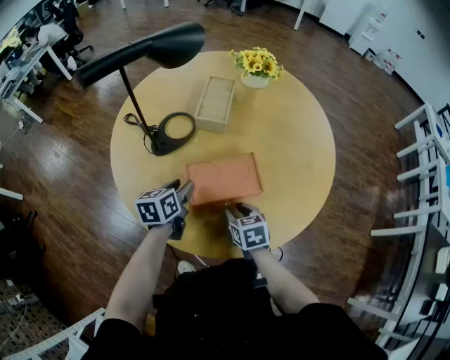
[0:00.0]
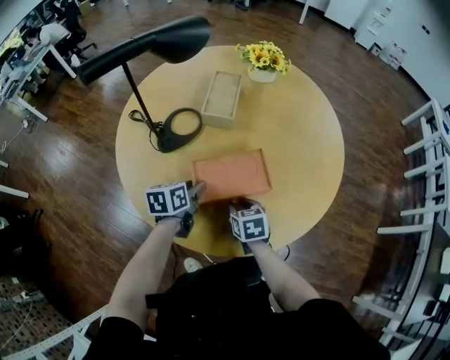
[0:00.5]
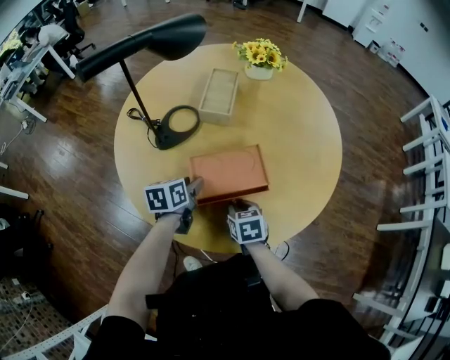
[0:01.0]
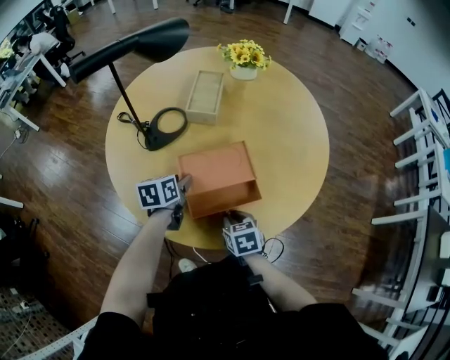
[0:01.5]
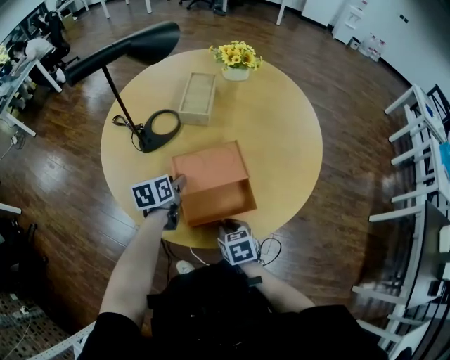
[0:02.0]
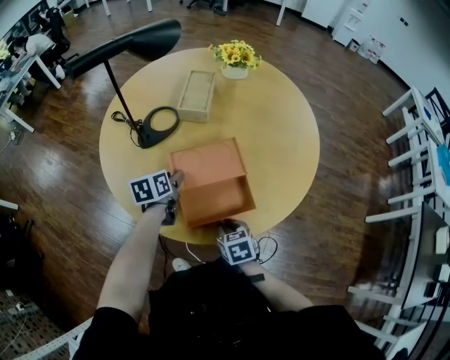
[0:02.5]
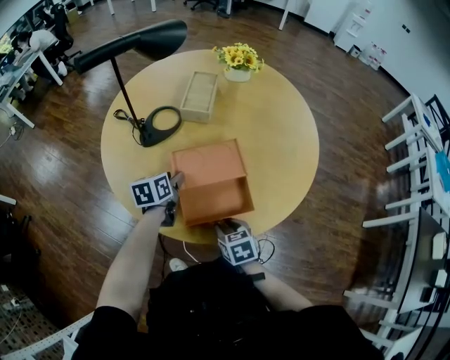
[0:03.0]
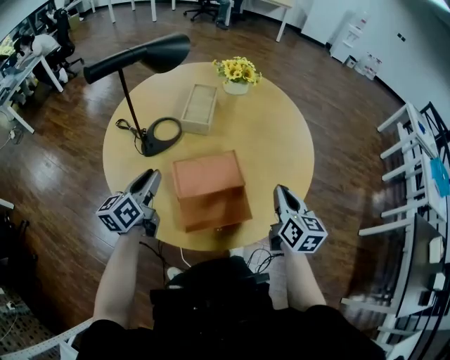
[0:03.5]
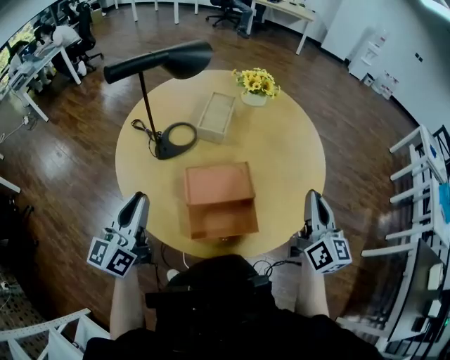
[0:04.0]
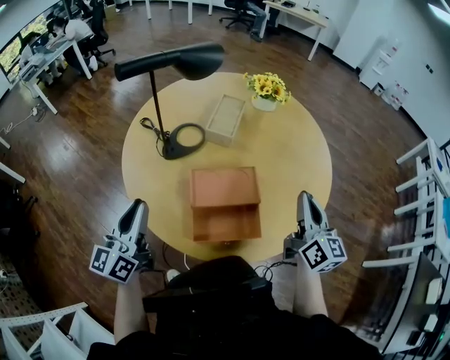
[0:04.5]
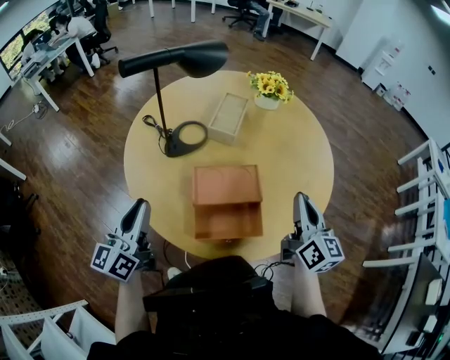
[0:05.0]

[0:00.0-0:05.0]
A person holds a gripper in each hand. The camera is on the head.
0:00.0 to 0:02.5: The right gripper is displaced backward by roughly 10 cm.
0:02.5 to 0:05.0: The right gripper goes some 35 cm upward, to the right and forward, and tips its fingers upward by approximately 50 degrees. Meanwhile the left gripper goes some 25 cm upward, backward and to the left, points its fingers some 40 degrees further upward, and closes its fingers.

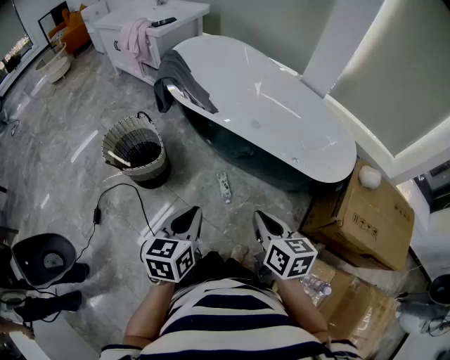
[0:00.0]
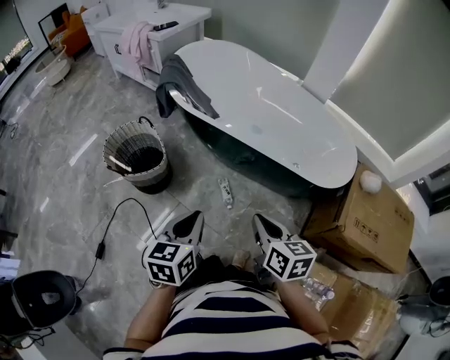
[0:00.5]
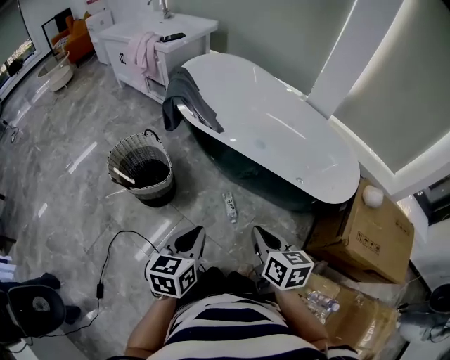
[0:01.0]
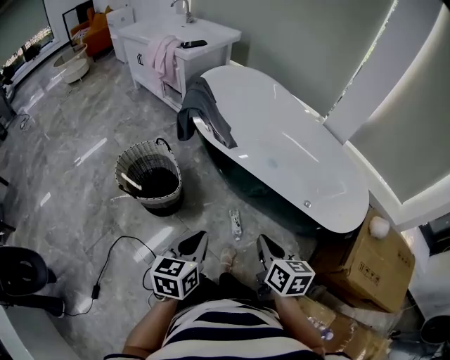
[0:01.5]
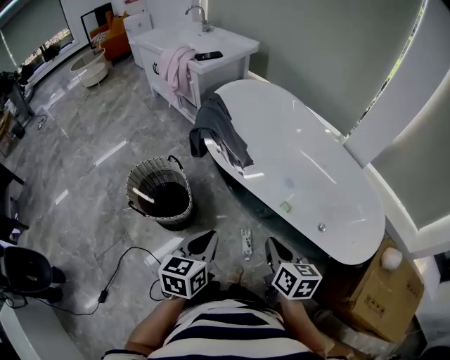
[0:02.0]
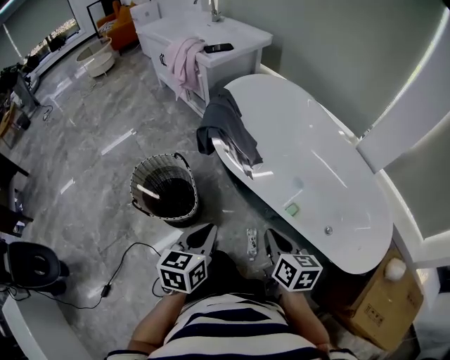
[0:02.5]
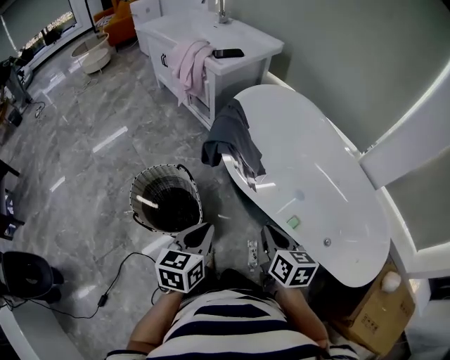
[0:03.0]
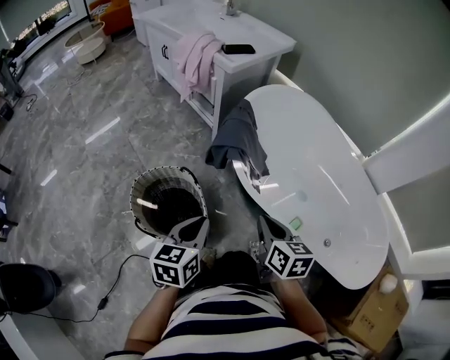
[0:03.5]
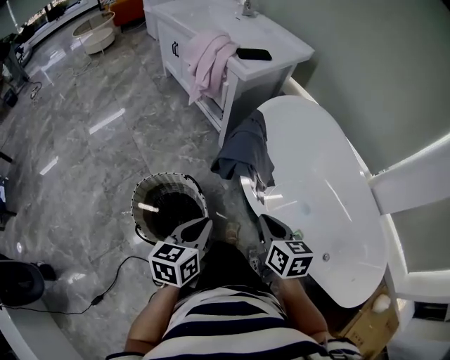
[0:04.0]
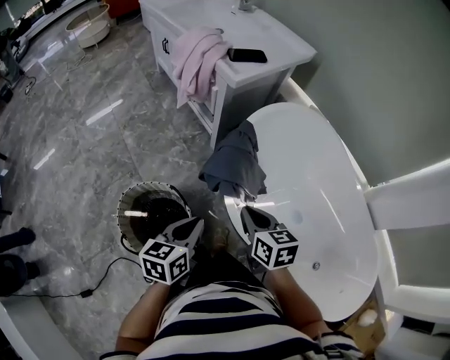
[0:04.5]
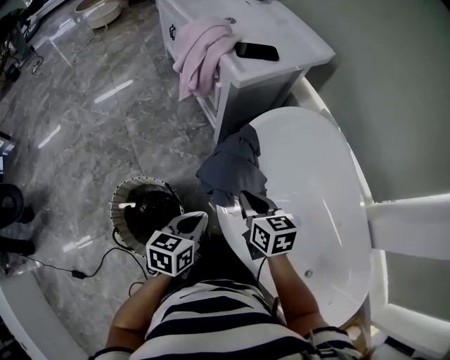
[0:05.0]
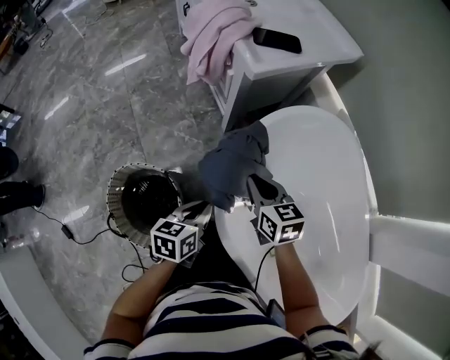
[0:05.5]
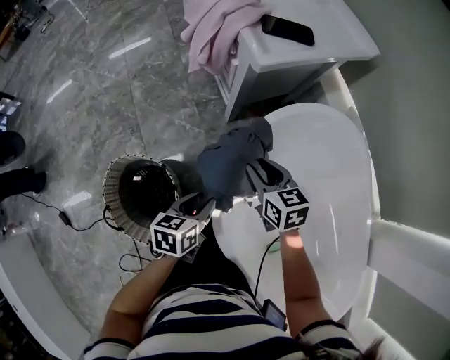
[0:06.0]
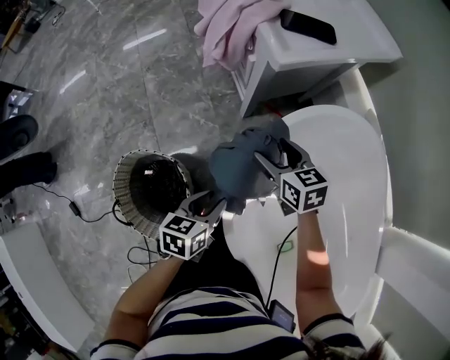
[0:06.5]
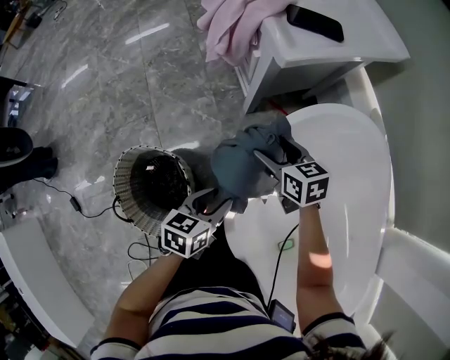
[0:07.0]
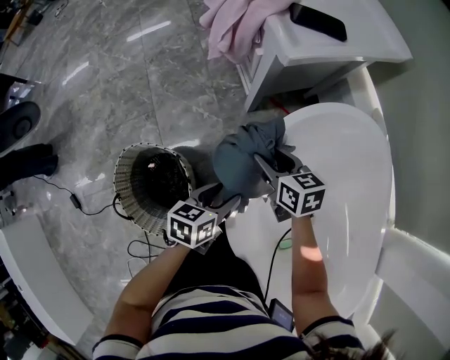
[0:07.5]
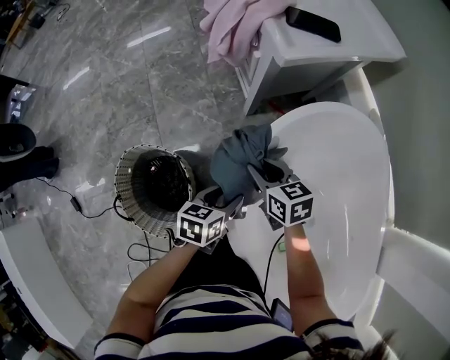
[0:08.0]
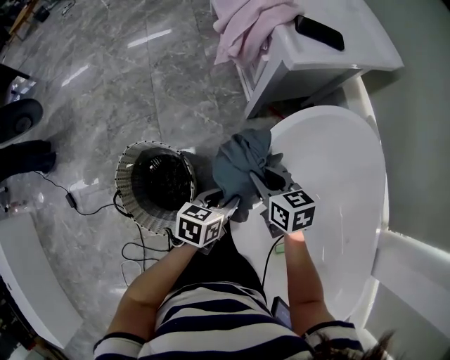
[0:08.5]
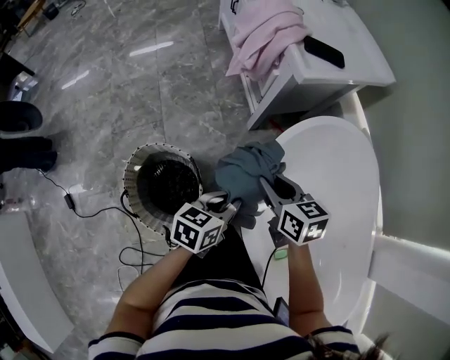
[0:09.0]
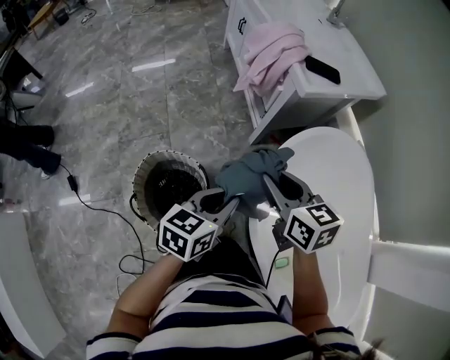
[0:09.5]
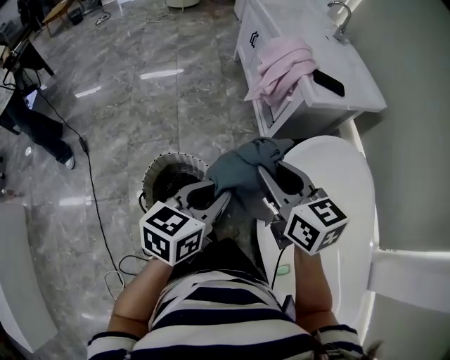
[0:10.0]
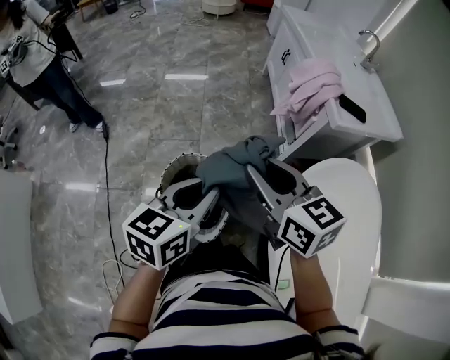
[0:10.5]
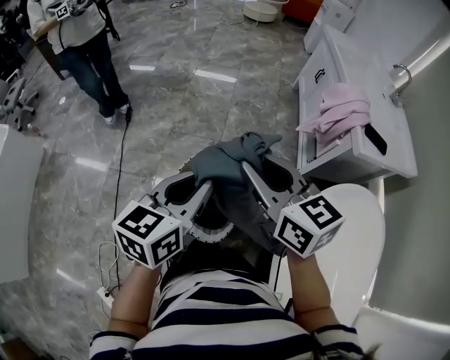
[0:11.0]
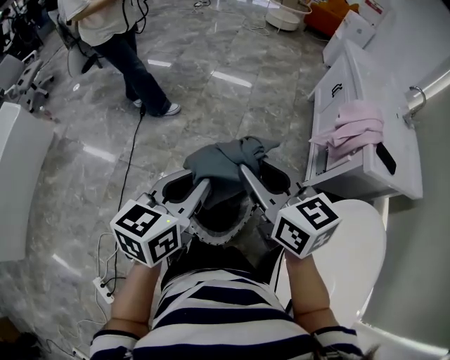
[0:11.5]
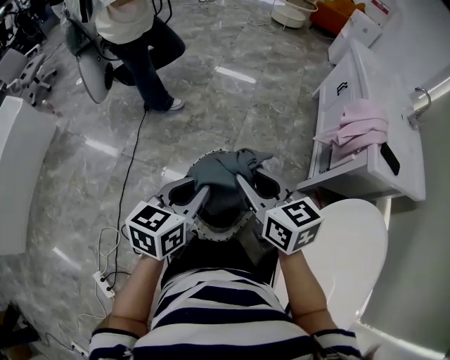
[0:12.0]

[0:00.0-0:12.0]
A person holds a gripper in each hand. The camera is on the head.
0:00.0 to 0:02.0: The grippers both shift forward by about 20 cm.
0:02.0 to 0:04.0: Both grippers move forward and to the left, some 35 cm.
0:04.0 to 0:06.0: The left gripper goes approximately 25 cm forward, downward and to the right, swivels about 20 degrees, and opens, while the right gripper moves forward, roughly 30 cm, and swivels approximately 30 degrees.
0:06.0 to 0:08.0: The left gripper opens its fingers; the right gripper moves approximately 5 cm, and opens and closes again.
0:08.0 to 0:10.0: The grippers both shift upward and to the left by roughly 30 cm. The right gripper swivels approximately 20 degrees. Meanwhile the left gripper turns by some 30 degrees, and closes its fingers.
0:10.0 to 0:12.0: The left gripper shifts by roughly 20 cm, and swivels roughly 30 degrees. Meanwhile the right gripper moves about 20 cm, and swivels approximately 30 degrees.

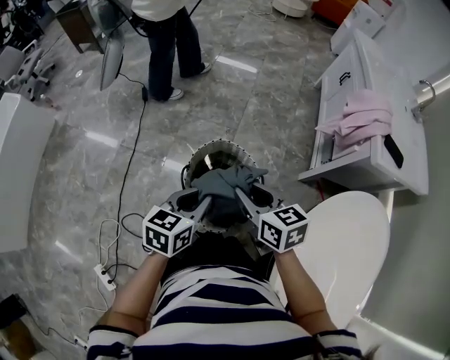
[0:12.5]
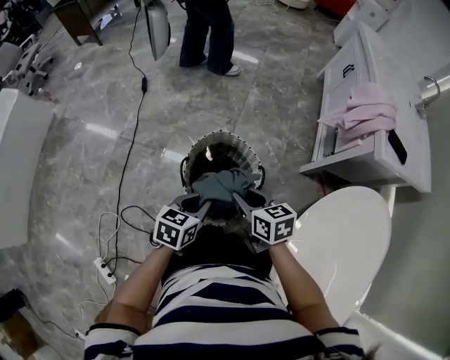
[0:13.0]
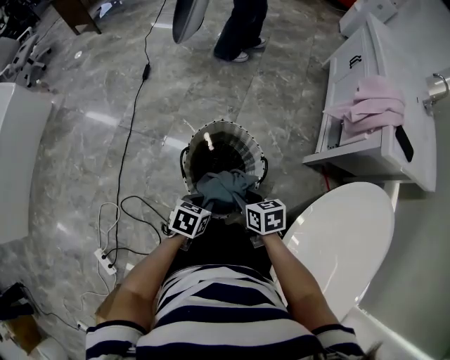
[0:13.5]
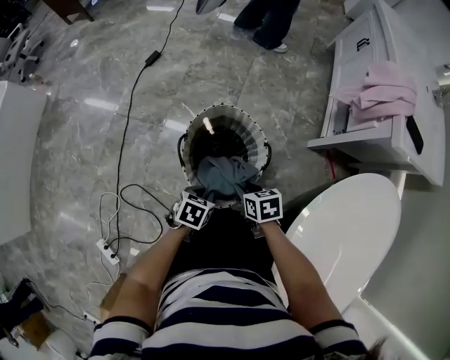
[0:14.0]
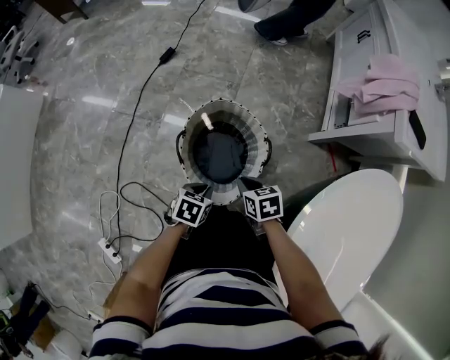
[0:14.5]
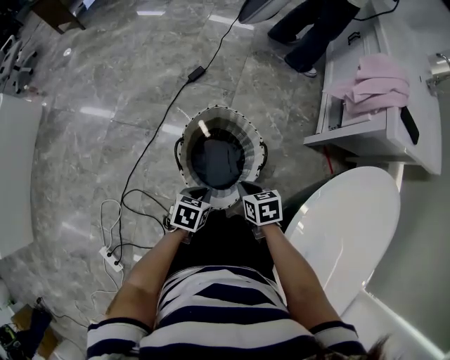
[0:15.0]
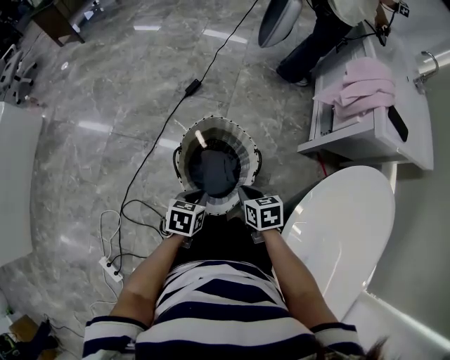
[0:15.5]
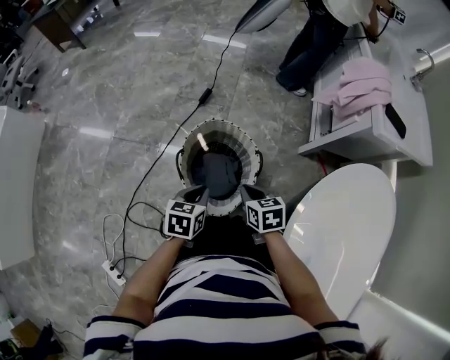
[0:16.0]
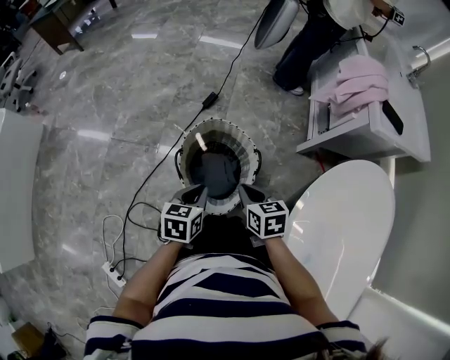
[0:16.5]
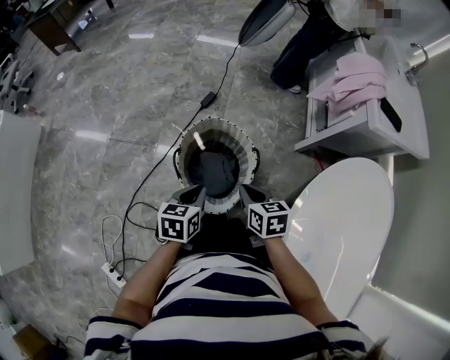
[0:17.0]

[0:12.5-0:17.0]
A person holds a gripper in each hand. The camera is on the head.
0:12.5 to 0:14.5: Both grippers move downward, about 25 cm. The left gripper rotates approximately 30 degrees, while the right gripper rotates some 30 degrees.
0:14.5 to 0:17.0: The two grippers go some 10 cm upward. The left gripper rotates some 20 degrees.

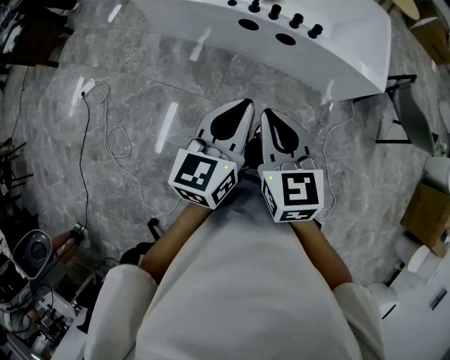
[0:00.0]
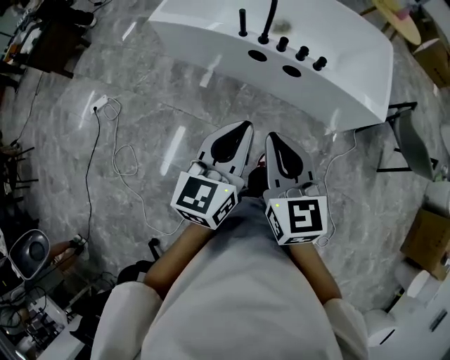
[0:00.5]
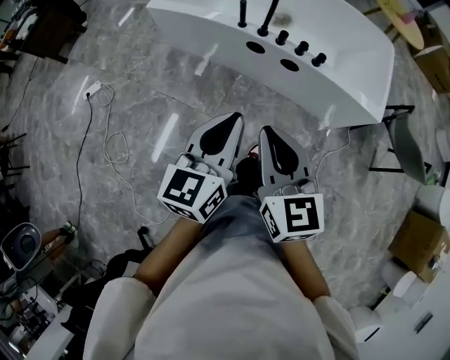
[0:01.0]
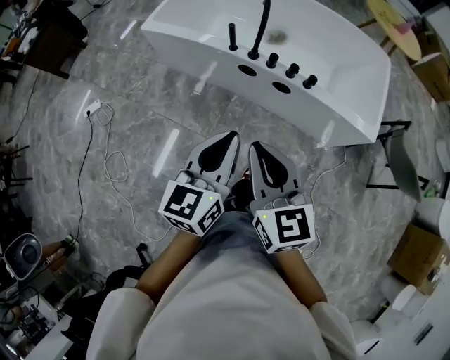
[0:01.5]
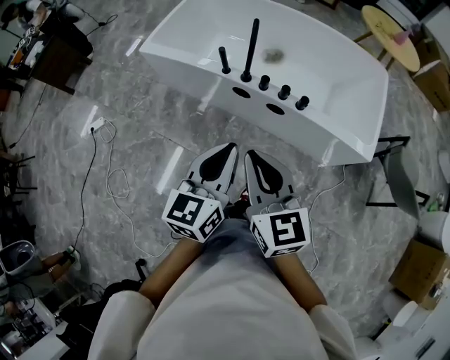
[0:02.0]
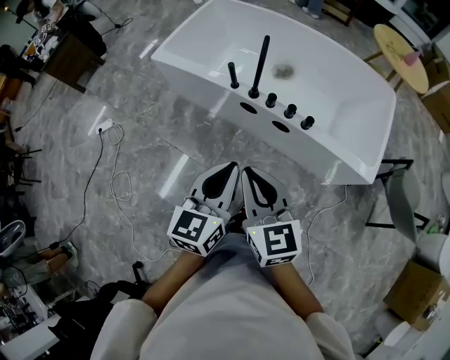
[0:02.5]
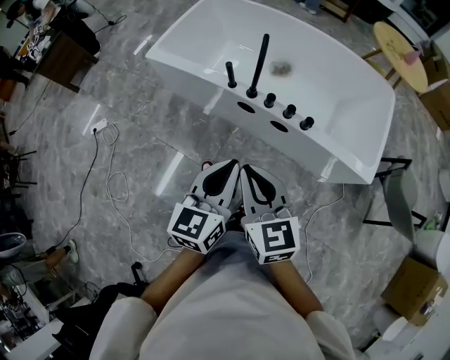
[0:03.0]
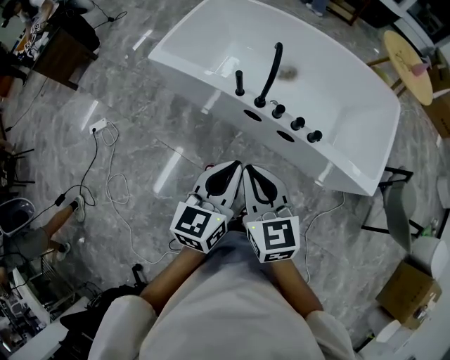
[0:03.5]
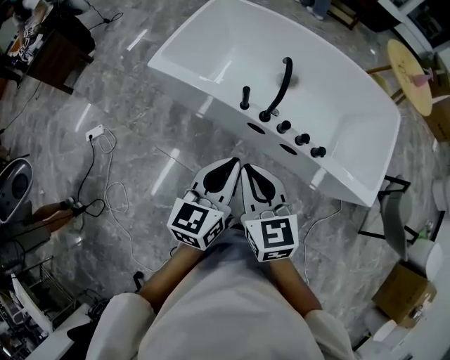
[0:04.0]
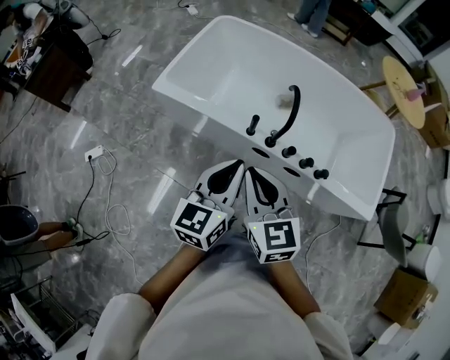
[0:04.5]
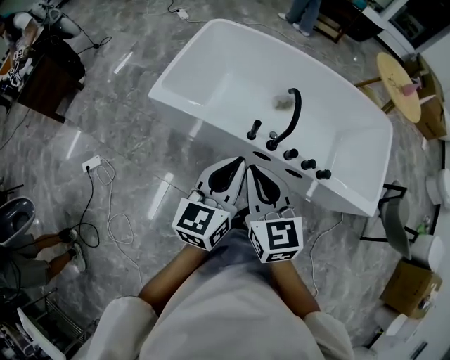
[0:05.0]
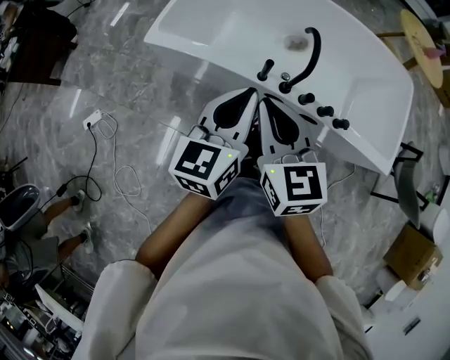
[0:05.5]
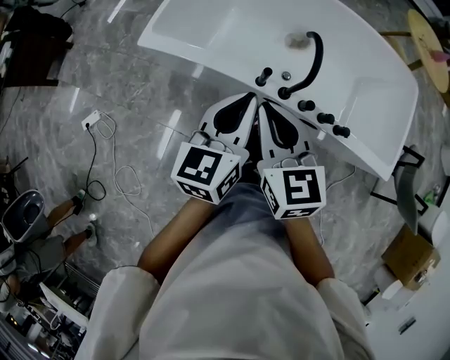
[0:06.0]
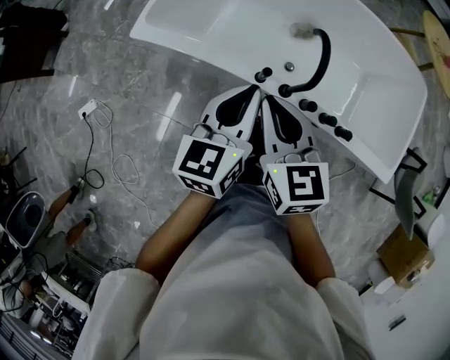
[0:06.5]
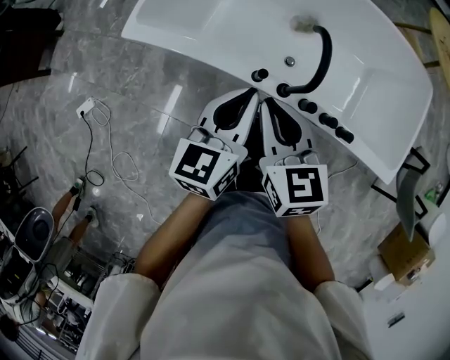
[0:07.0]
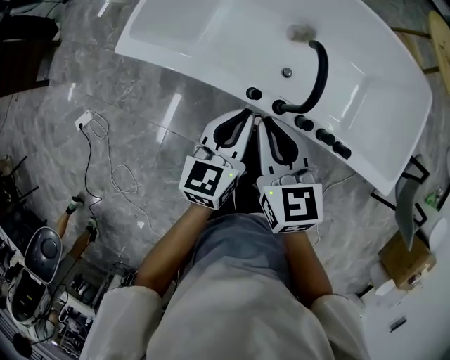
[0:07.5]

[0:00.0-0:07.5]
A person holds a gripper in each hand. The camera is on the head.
0:00.0 to 0:02.0: The grippers both shift forward and to the right by roughly 15 cm.
0:02.0 to 0:04.0: The two grippers go approximately 20 cm forward and to the left.
0:04.0 to 0:05.5: The grippers both shift forward and to the left by about 15 cm.
0:05.5 to 0:07.5: The left gripper is displaced downward and forward by approximately 20 cm. Meanwhile the right gripper is displaced forward, downward and to the right by roughly 20 cm.
